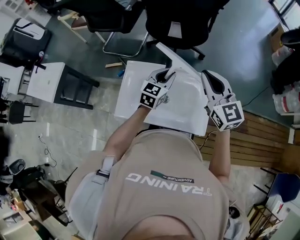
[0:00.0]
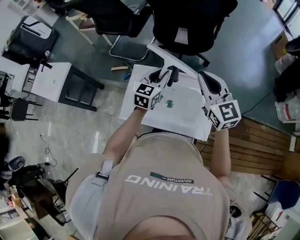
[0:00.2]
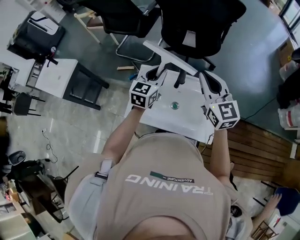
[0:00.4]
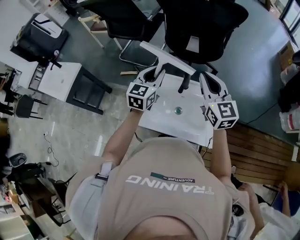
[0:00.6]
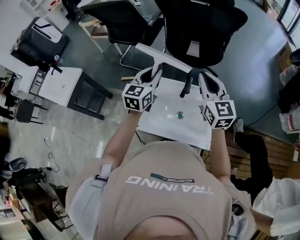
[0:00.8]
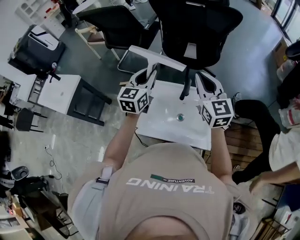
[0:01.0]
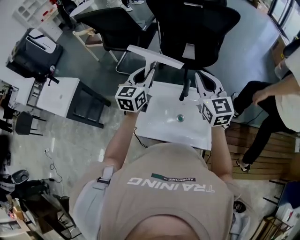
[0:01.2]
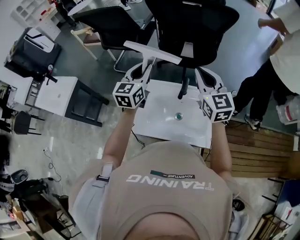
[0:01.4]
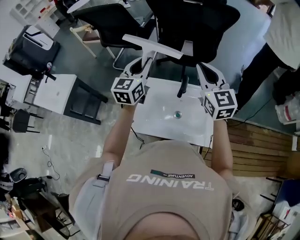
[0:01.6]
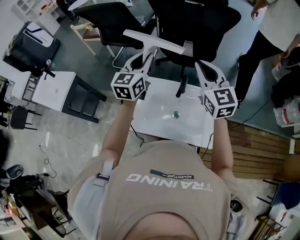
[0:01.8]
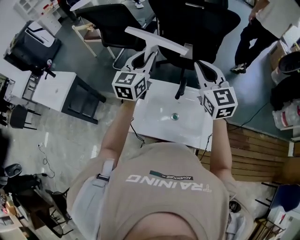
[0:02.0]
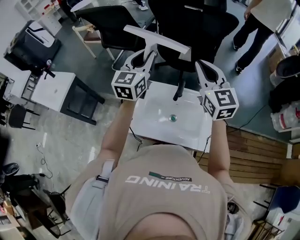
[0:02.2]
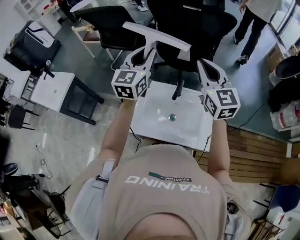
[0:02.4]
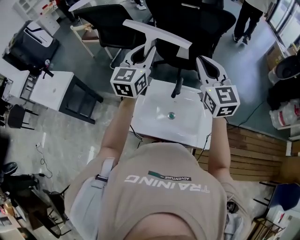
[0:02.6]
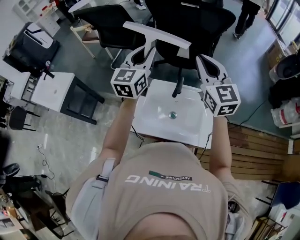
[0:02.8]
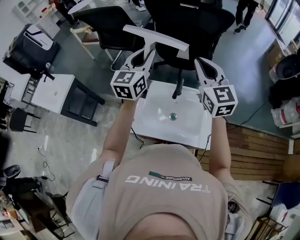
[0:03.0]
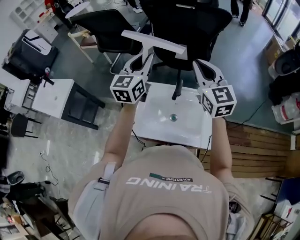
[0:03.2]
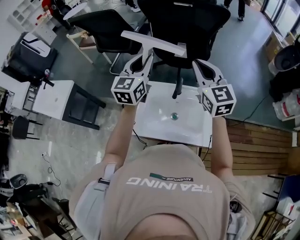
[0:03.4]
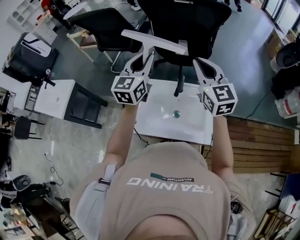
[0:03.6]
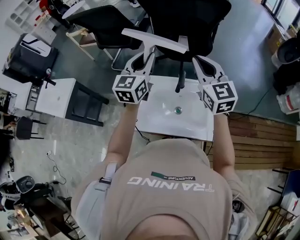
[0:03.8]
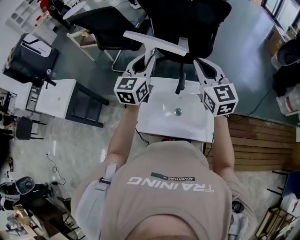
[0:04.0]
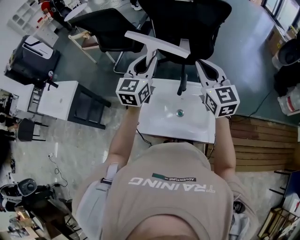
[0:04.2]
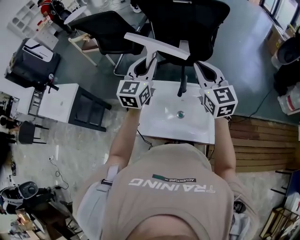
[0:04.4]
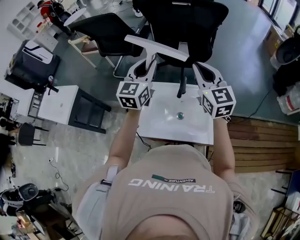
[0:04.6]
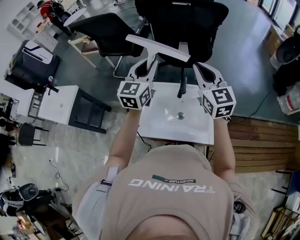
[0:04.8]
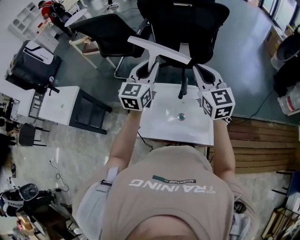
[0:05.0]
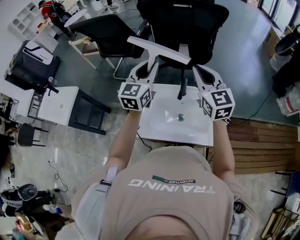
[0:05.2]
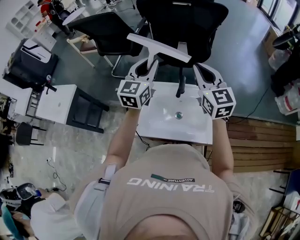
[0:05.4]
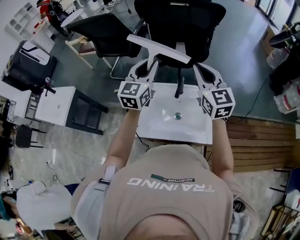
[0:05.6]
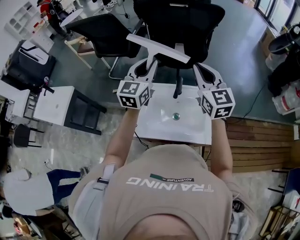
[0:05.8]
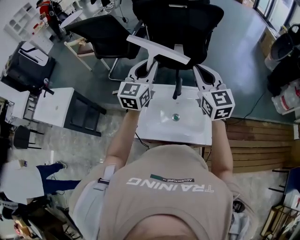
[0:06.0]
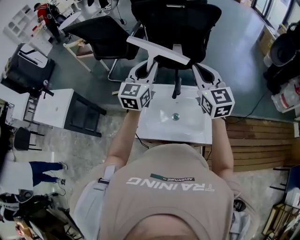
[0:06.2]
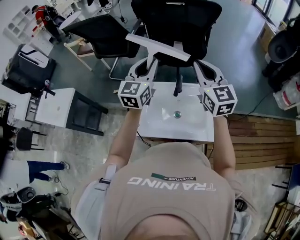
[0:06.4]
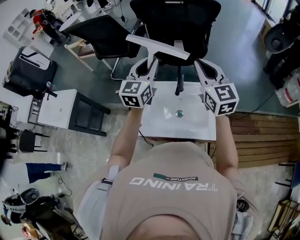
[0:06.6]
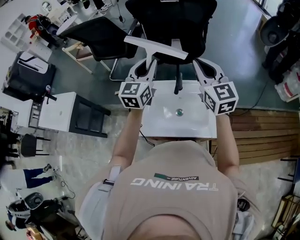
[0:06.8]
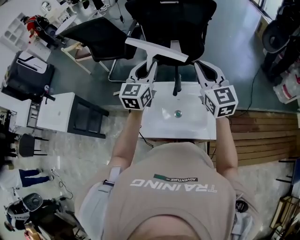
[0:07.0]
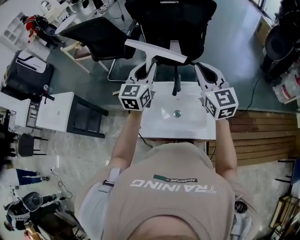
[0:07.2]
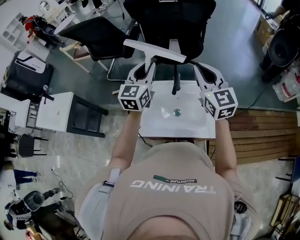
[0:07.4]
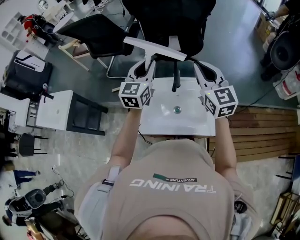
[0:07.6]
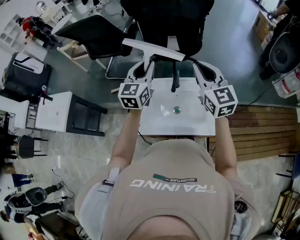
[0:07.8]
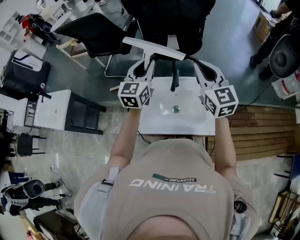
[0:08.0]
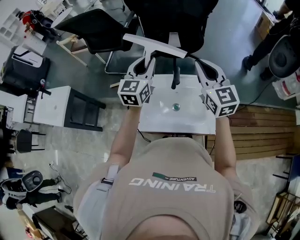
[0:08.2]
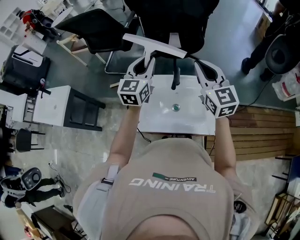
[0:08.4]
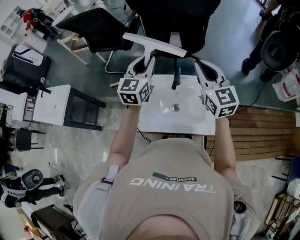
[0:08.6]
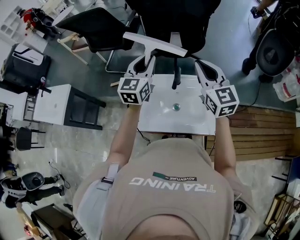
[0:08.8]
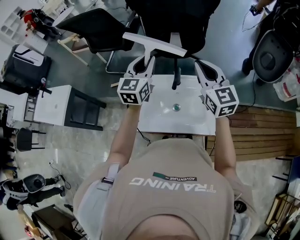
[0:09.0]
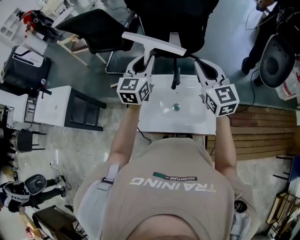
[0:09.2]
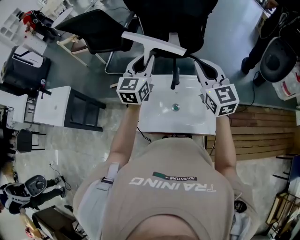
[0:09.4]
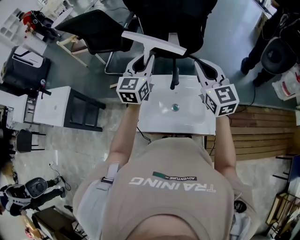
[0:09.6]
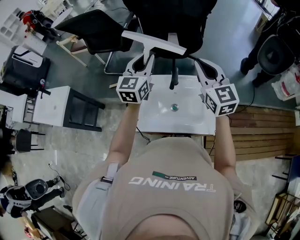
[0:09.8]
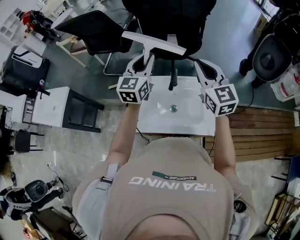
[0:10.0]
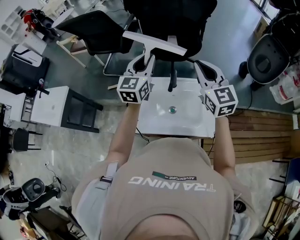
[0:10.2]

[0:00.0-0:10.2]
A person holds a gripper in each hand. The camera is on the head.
0:00.0 to 0:01.4: The right gripper travels to the left and forward by roughly 10 cm; the left gripper heads to the left and upward, covering roughly 25 cm.
0:01.4 to 0:03.0: The grippers both shift upward by approximately 5 cm.
0:03.0 to 0:05.8: The grippers stay close to where they were, moving slightly.
0:05.8 to 0:10.2: There are only small adjustments of the grippers.

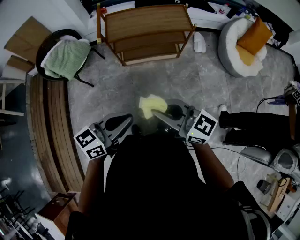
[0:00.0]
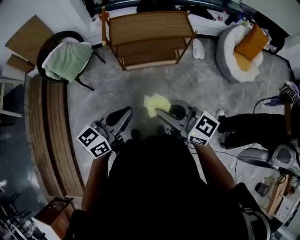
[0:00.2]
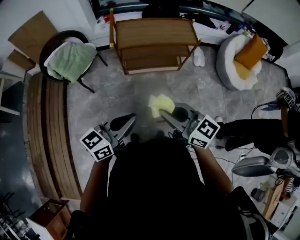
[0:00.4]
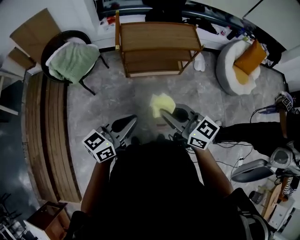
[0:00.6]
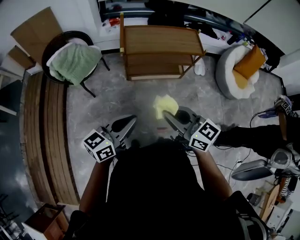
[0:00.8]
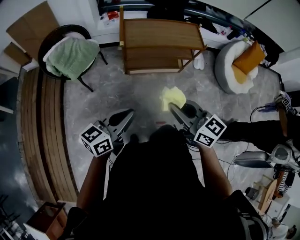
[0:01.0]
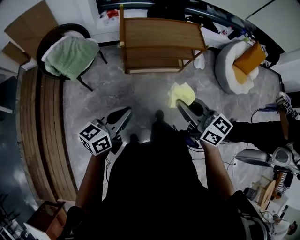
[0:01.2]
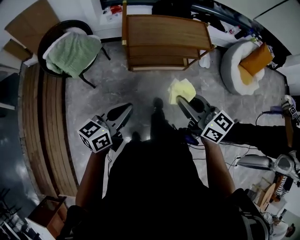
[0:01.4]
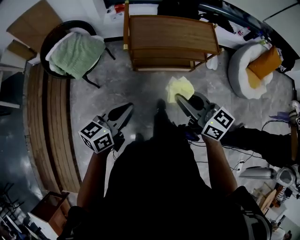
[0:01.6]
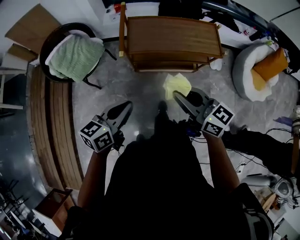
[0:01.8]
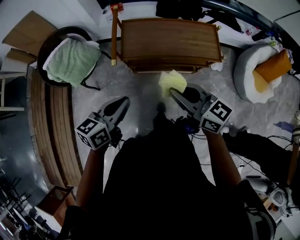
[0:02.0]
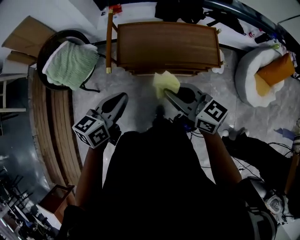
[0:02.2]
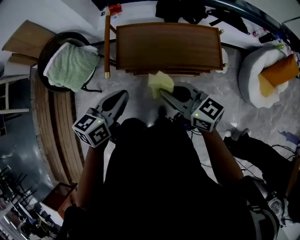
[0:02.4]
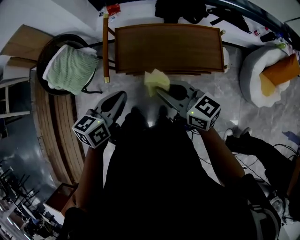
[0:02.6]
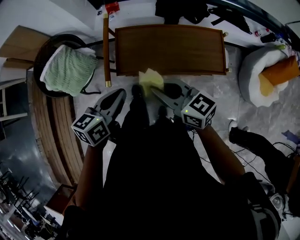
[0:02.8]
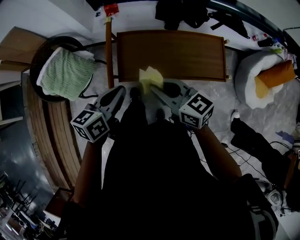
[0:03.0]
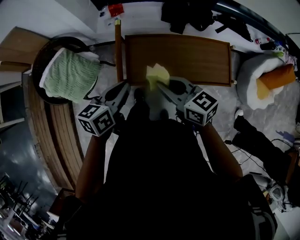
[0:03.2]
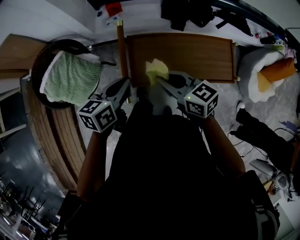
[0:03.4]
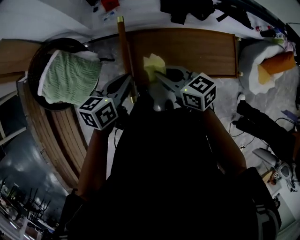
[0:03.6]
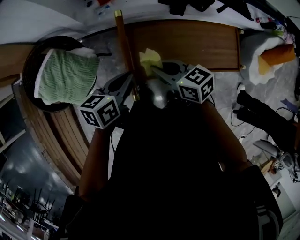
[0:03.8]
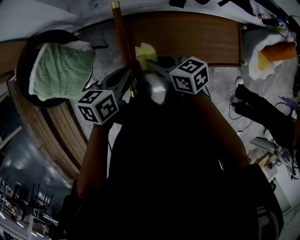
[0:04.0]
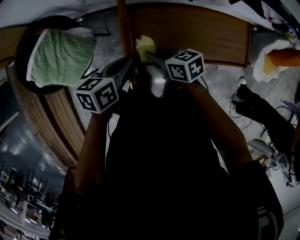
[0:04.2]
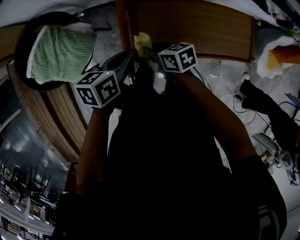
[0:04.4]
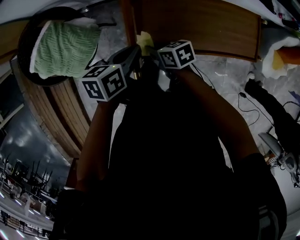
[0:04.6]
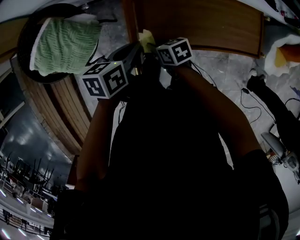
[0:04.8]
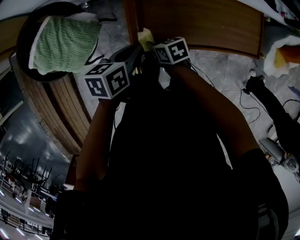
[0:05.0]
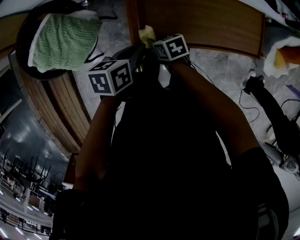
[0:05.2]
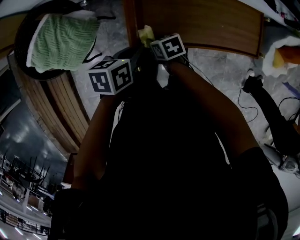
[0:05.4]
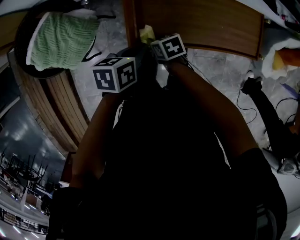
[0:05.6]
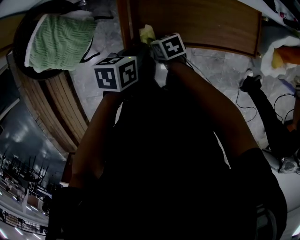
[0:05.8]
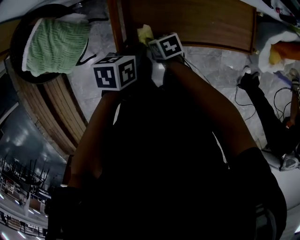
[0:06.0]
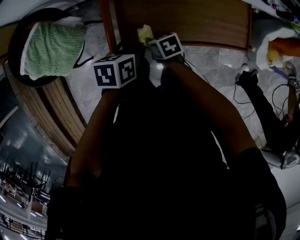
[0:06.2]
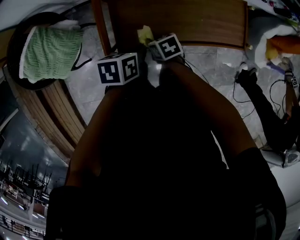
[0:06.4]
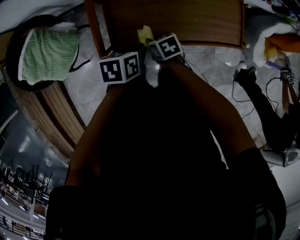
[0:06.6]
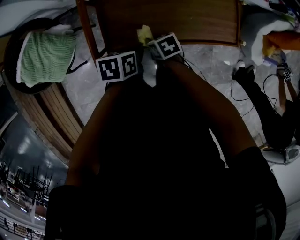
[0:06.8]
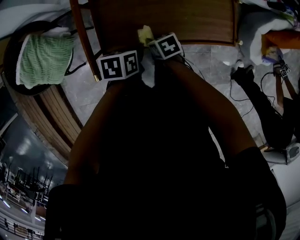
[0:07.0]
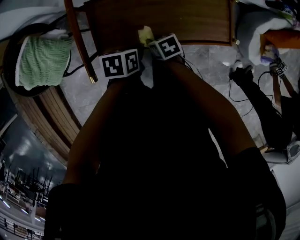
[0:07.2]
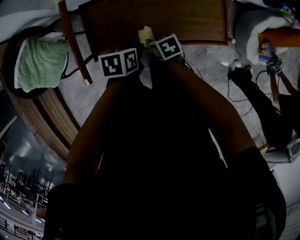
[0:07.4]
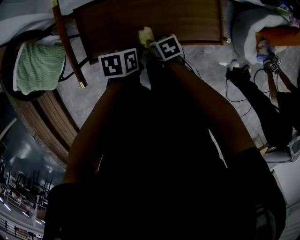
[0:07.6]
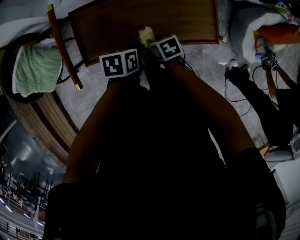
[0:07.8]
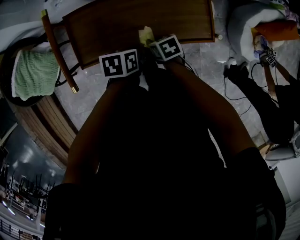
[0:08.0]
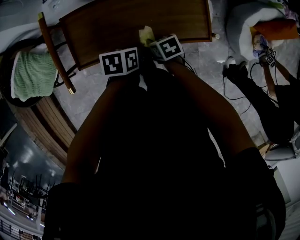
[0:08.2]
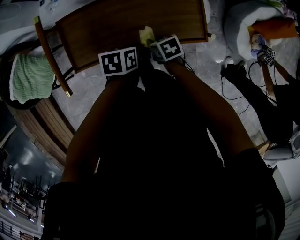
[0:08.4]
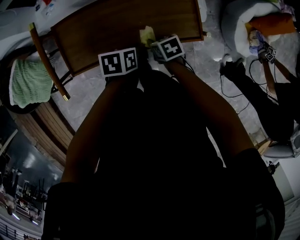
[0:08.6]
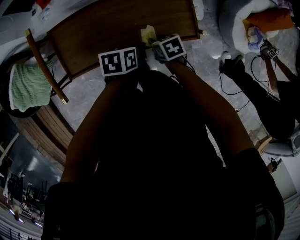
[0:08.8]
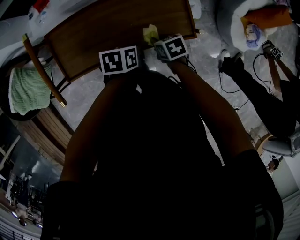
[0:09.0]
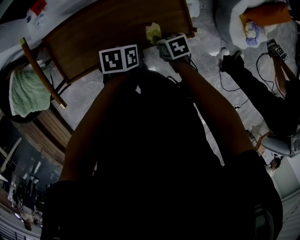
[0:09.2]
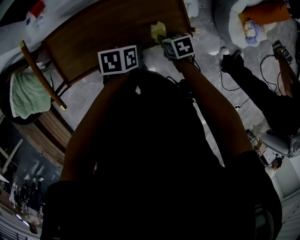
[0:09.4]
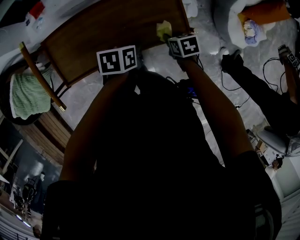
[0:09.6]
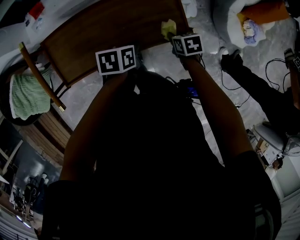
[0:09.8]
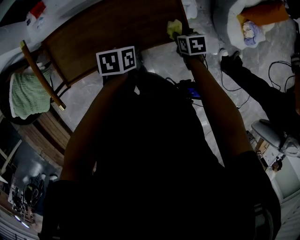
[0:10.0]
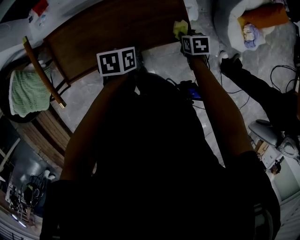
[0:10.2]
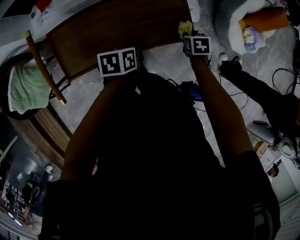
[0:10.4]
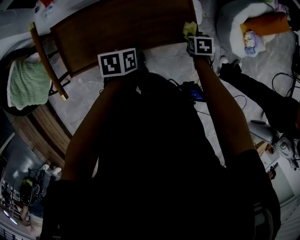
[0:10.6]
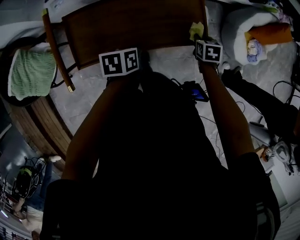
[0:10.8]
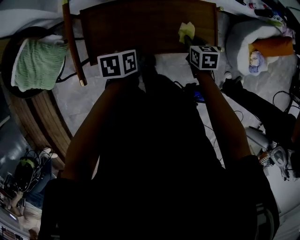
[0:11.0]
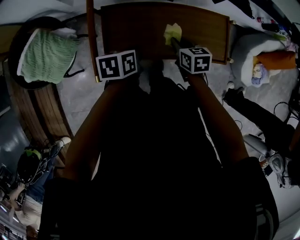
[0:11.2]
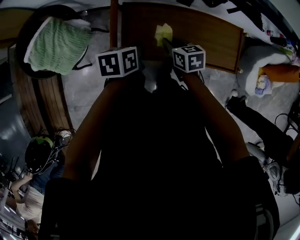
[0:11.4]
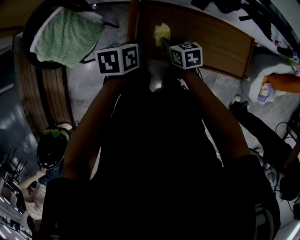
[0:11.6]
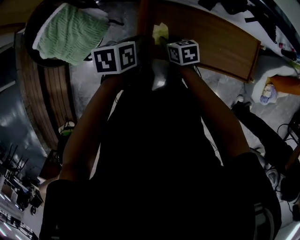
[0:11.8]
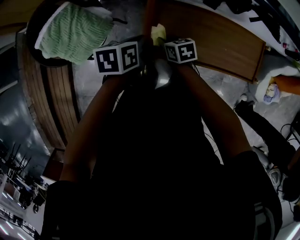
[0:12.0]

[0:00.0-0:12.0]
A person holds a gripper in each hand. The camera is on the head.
0:00.0 to 0:01.6: The right gripper is displaced forward by approximately 20 cm. The left gripper heads forward and to the left, covering about 20 cm.
0:01.6 to 0:03.0: Both grippers travel together forward, approximately 30 cm.
0:03.0 to 0:04.4: The right gripper goes approximately 25 cm downward, to the left and forward, and swivels some 40 degrees. The left gripper is displaced downward, forward and to the left by some 15 cm.
0:04.4 to 0:06.0: The left gripper heads to the right, covering approximately 5 cm. Meanwhile the right gripper goes about 5 cm downward.
0:06.0 to 0:07.6: The grippers both shift to the right by about 20 cm.
0:07.6 to 0:09.0: Both grippers travel together to the right, roughly 15 cm.
0:09.0 to 0:10.4: The right gripper is displaced to the right by some 15 cm, and swivels about 20 degrees.
0:10.4 to 0:12.0: The pair of grippers is taken about 50 cm. The left gripper turns by approximately 20 degrees. The right gripper rotates some 40 degrees.

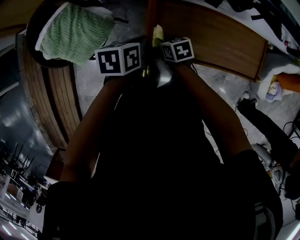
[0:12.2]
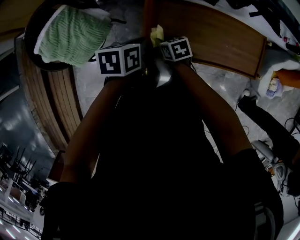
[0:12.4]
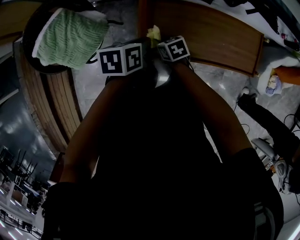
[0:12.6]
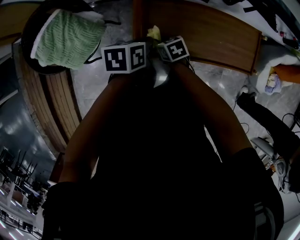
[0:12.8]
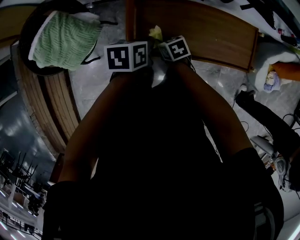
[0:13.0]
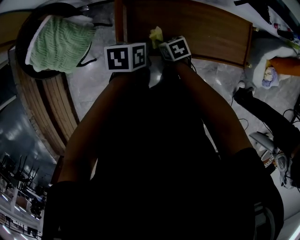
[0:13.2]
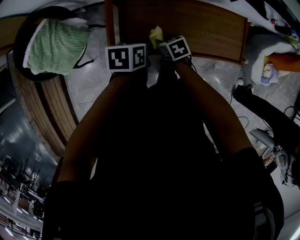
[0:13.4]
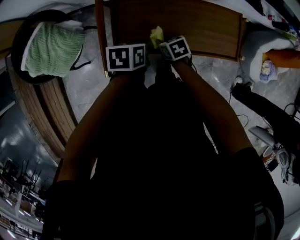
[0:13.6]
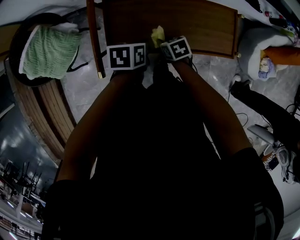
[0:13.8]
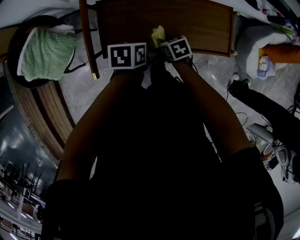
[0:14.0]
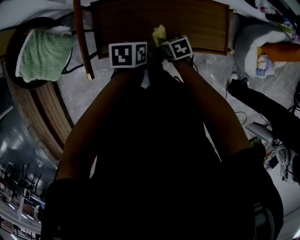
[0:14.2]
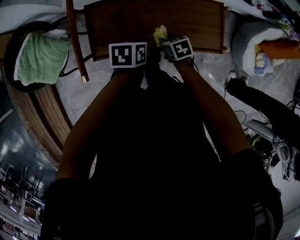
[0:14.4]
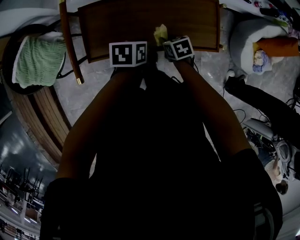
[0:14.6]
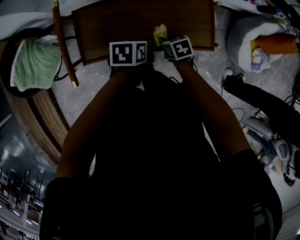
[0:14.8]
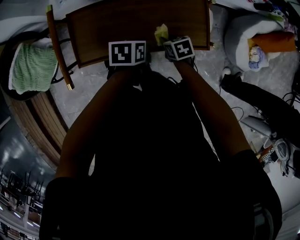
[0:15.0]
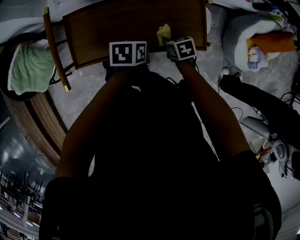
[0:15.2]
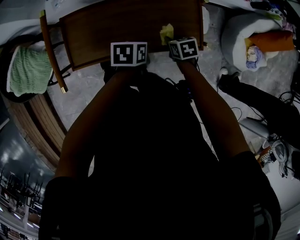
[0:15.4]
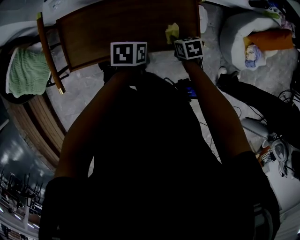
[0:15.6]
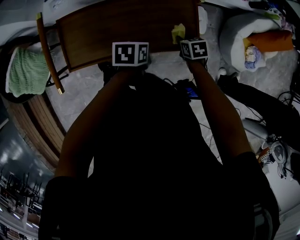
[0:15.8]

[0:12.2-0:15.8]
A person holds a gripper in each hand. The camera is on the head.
0:12.2 to 0:14.0: The two grippers go some 20 cm to the right.
0:14.0 to 0:15.8: Both grippers move to the right, approximately 20 cm.
